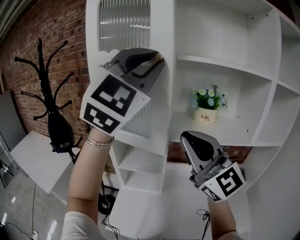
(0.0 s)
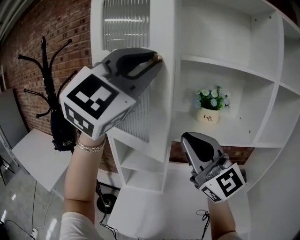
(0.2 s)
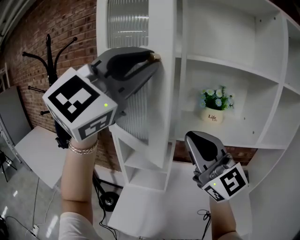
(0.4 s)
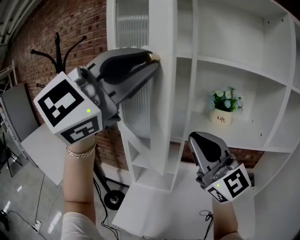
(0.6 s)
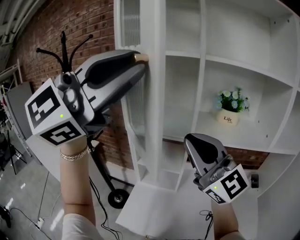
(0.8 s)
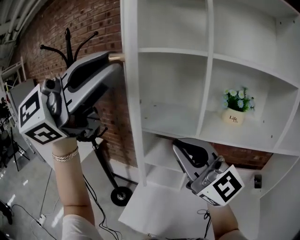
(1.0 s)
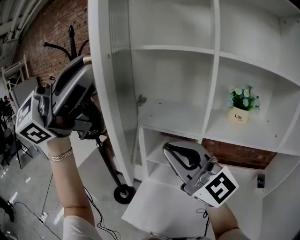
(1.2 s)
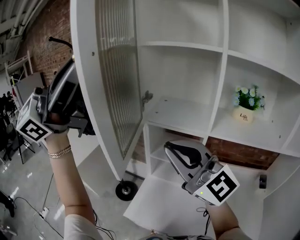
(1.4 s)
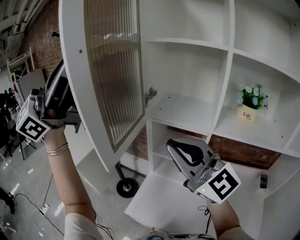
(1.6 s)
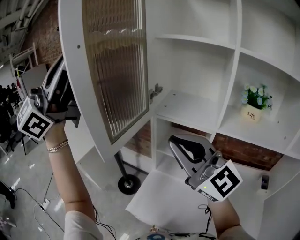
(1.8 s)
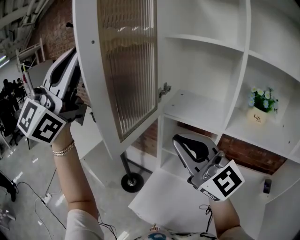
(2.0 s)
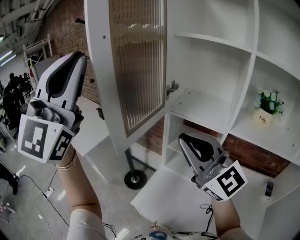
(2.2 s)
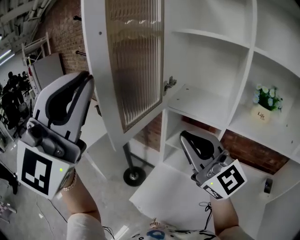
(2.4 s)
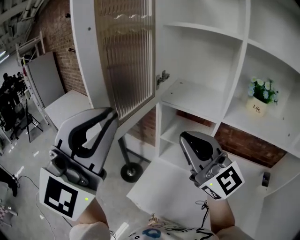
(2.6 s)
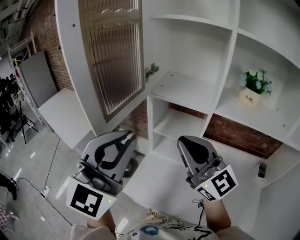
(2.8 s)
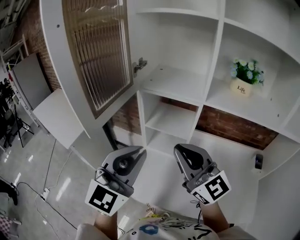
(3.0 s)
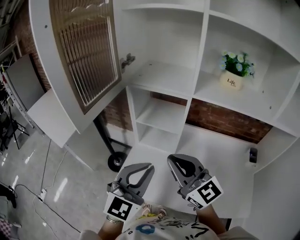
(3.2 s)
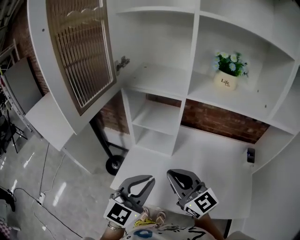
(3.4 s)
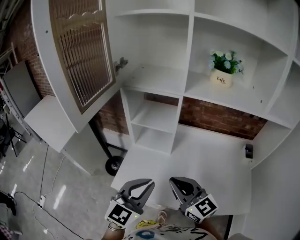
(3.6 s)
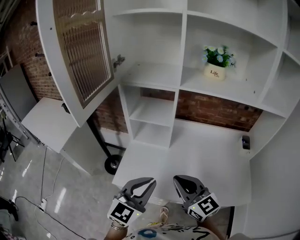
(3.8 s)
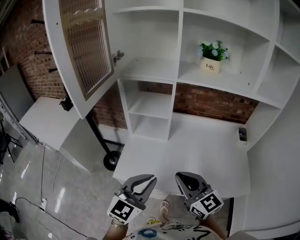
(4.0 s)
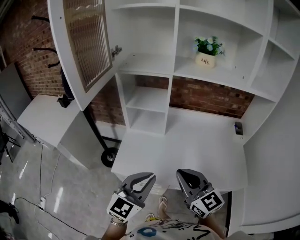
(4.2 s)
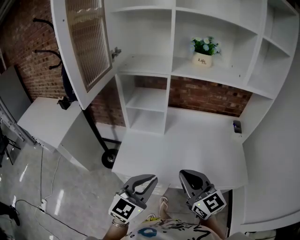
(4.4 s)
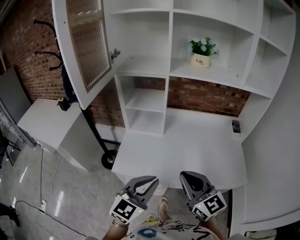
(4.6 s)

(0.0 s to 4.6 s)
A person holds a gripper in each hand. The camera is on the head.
0.0 s - 1.6 s: The right gripper travels to the left by roughly 15 cm, and rotates roughly 20 degrees; the left gripper is displaced to the left and backward by approximately 35 cm, and swivels approximately 40 degrees.
1.6 s - 3.0 s: The right gripper shifts roughly 15 cm downward and to the right. The left gripper goes some 35 cm downward and to the right, and tips its fingers downward by approximately 30 degrees.
3.0 s - 4.6 s: The left gripper goes some 30 cm backward, downward and to the right, and turns by approximately 30 degrees. The right gripper shifts roughly 25 cm backward and downward, and changes its angle by approximately 30 degrees.

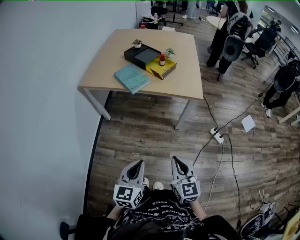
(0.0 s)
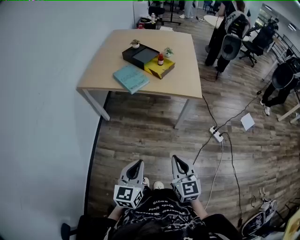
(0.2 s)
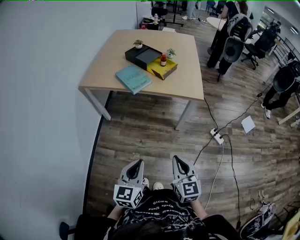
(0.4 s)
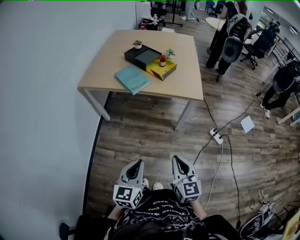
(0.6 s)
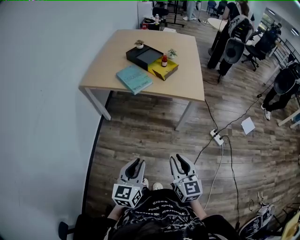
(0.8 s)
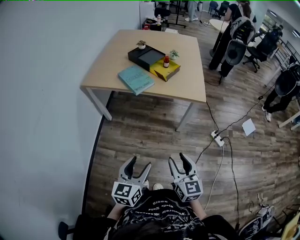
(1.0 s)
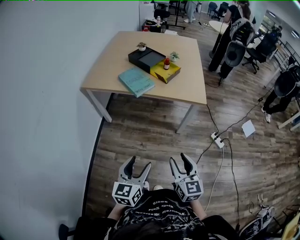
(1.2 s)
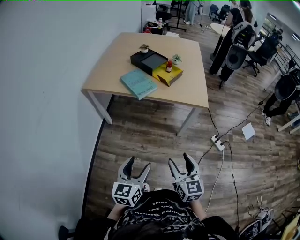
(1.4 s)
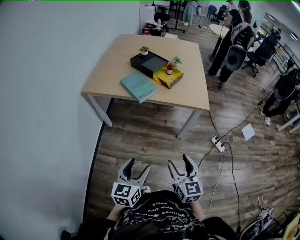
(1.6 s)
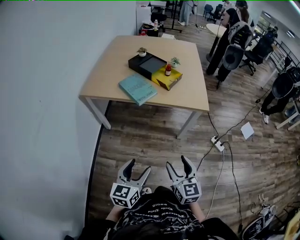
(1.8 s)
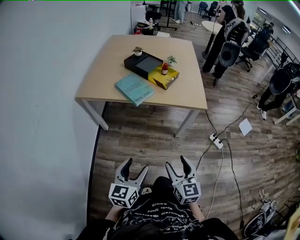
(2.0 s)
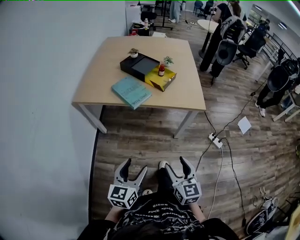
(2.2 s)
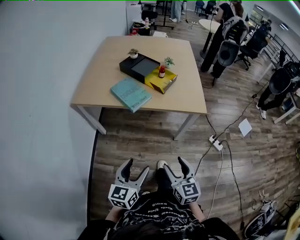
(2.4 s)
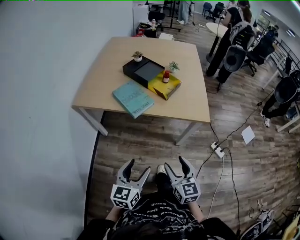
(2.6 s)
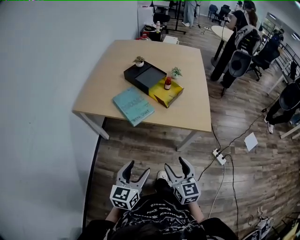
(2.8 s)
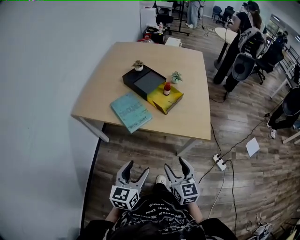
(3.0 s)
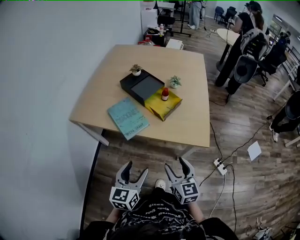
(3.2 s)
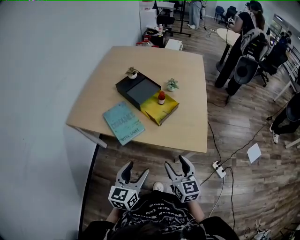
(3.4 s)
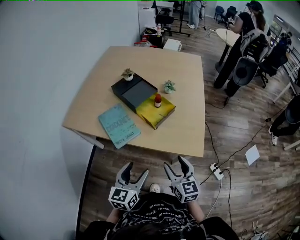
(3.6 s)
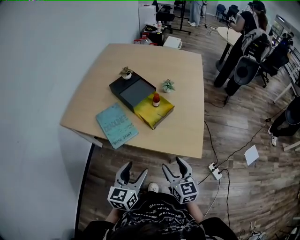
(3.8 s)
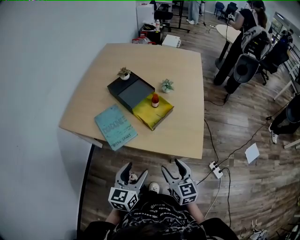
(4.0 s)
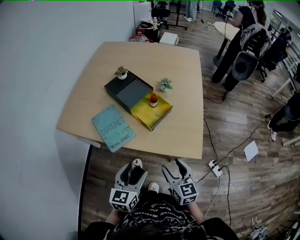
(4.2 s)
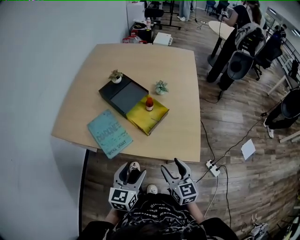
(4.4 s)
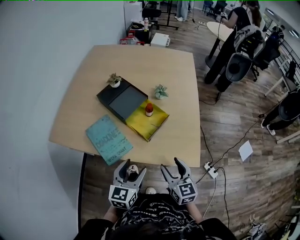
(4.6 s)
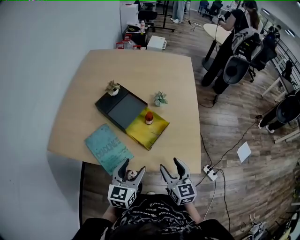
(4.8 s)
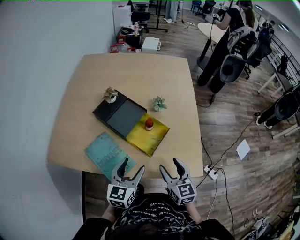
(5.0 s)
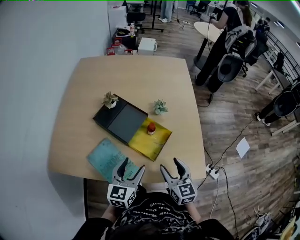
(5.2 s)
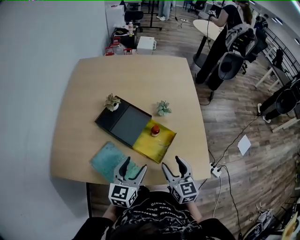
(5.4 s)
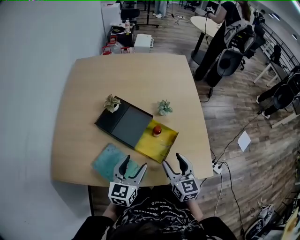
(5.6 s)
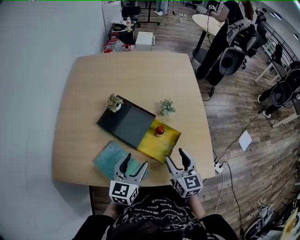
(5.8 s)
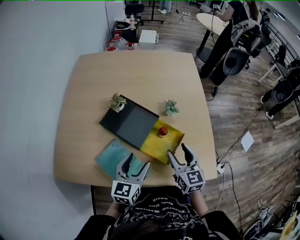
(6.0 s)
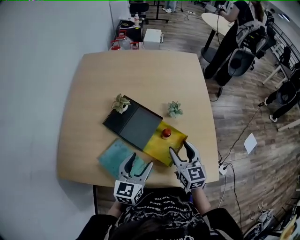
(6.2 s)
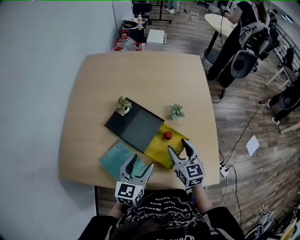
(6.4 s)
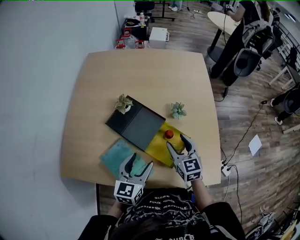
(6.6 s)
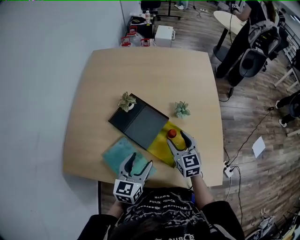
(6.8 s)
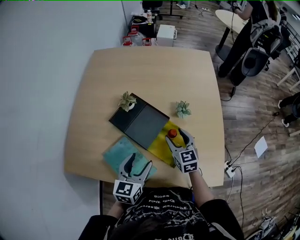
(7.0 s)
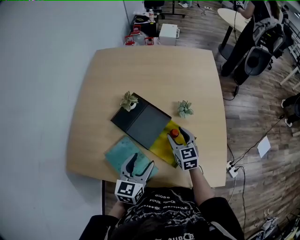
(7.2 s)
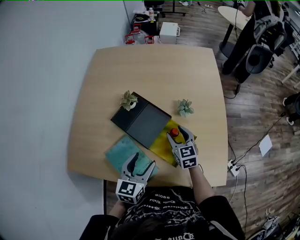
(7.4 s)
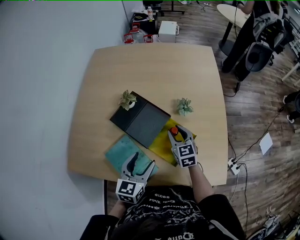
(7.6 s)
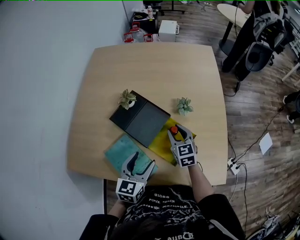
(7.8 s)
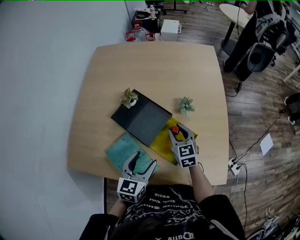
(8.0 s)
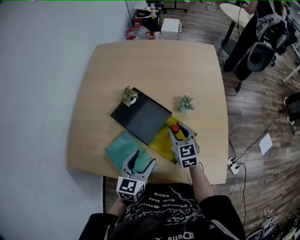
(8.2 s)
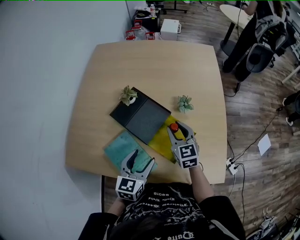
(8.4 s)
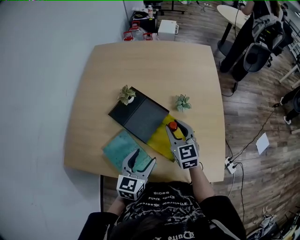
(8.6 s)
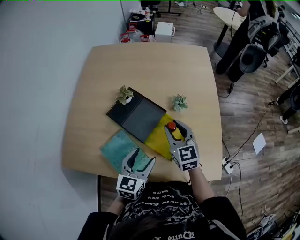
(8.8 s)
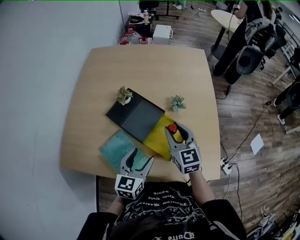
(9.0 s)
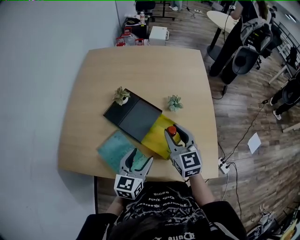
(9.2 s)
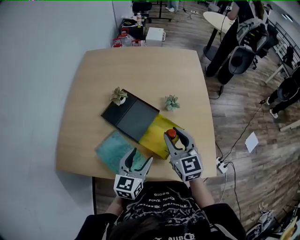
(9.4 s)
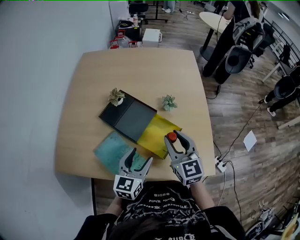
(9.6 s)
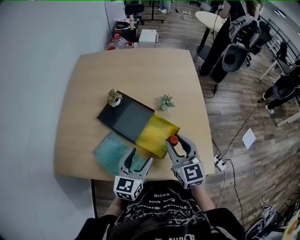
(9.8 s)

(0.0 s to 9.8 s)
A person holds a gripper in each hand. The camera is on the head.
0.0 s - 1.4 s: The left gripper changes place by some 5 cm, and opens. Meanwhile the right gripper opens.
1.4 s - 2.8 s: Both grippers travel together forward, some 20 cm.
2.8 s - 4.2 s: The grippers both shift forward and to the right by approximately 20 cm.
4.2 s - 5.6 s: The left gripper shifts approximately 25 cm forward. The right gripper moves forward and to the left, some 25 cm.
5.6 s - 7.0 s: The right gripper travels forward by about 15 cm.
7.0 s - 8.4 s: The right gripper closes.
8.4 s - 9.8 s: The right gripper moves backward and upward, about 15 cm; the left gripper ends up about 5 cm from where it was.

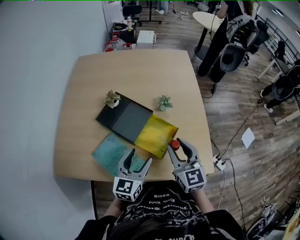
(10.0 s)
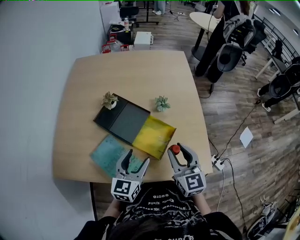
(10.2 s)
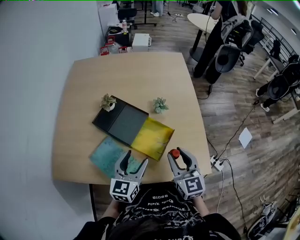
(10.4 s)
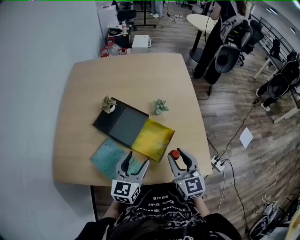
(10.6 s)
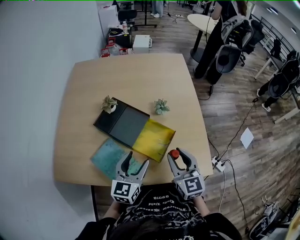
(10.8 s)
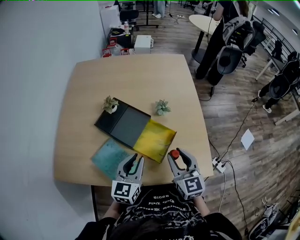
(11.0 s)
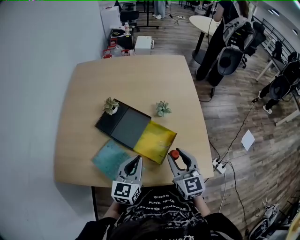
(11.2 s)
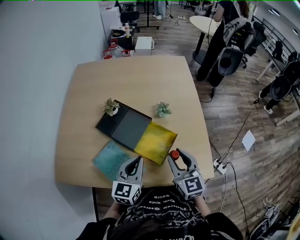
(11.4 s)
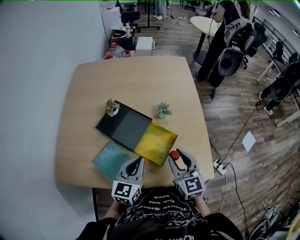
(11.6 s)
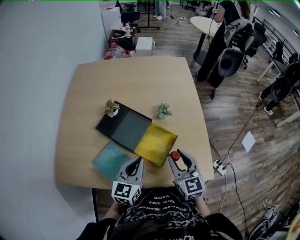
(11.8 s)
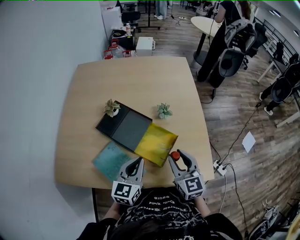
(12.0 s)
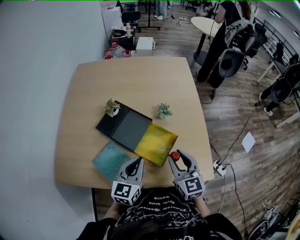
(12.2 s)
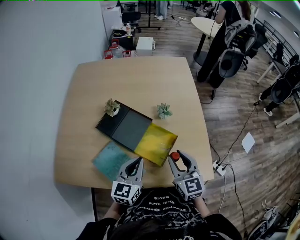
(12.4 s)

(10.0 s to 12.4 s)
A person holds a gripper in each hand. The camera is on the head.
10.0 s - 11.2 s: The left gripper closes.
11.2 s - 12.4 s: The grippers move only a little.

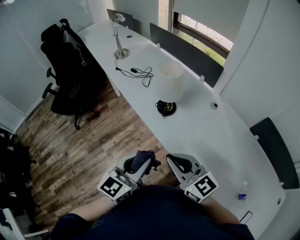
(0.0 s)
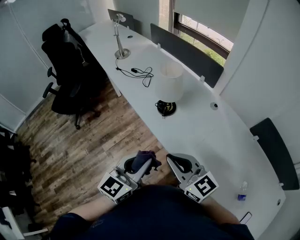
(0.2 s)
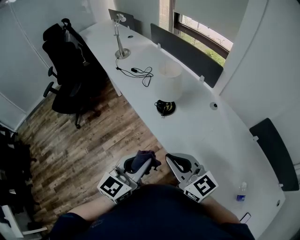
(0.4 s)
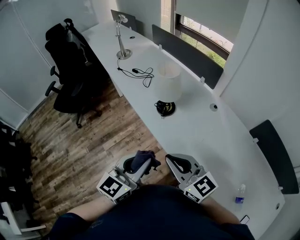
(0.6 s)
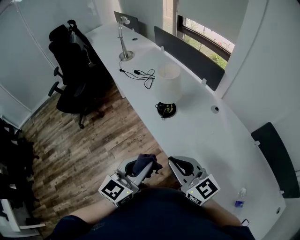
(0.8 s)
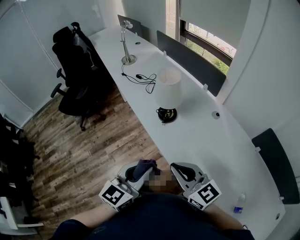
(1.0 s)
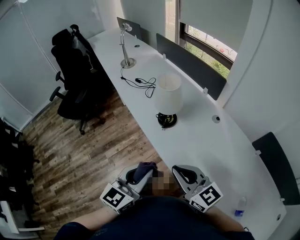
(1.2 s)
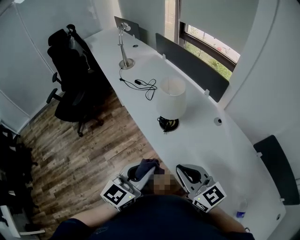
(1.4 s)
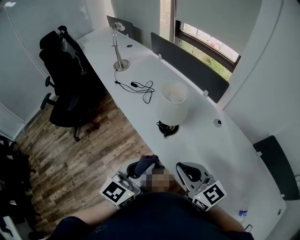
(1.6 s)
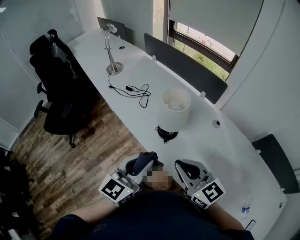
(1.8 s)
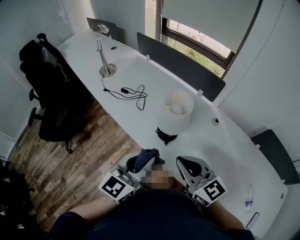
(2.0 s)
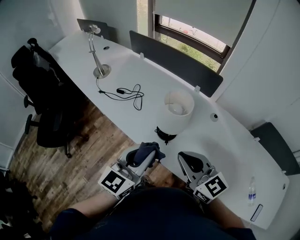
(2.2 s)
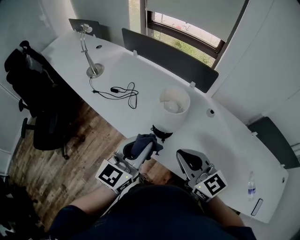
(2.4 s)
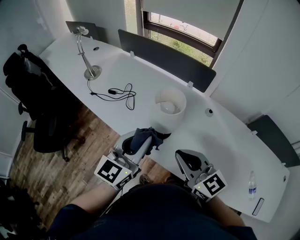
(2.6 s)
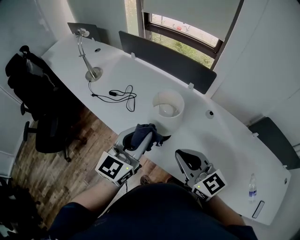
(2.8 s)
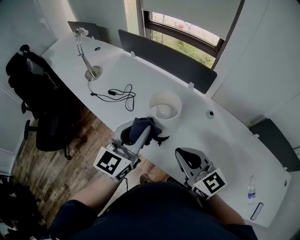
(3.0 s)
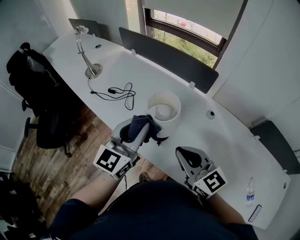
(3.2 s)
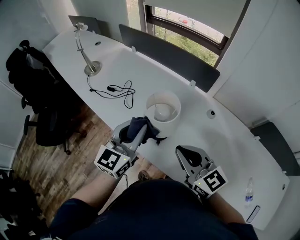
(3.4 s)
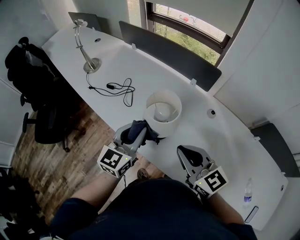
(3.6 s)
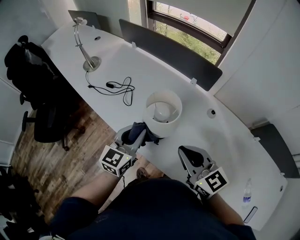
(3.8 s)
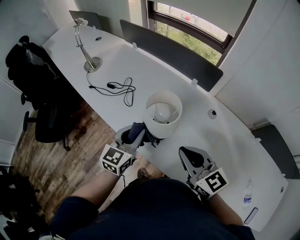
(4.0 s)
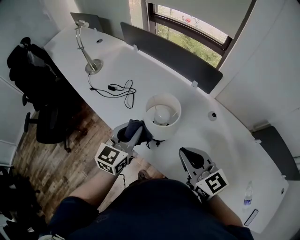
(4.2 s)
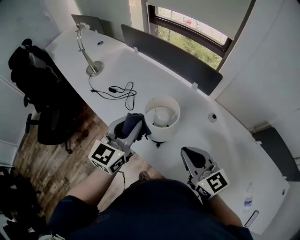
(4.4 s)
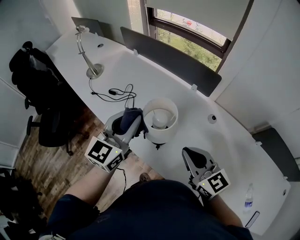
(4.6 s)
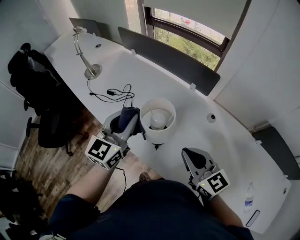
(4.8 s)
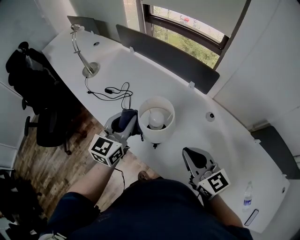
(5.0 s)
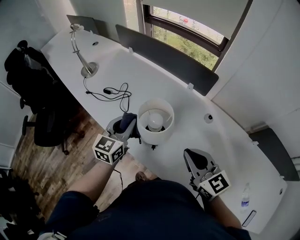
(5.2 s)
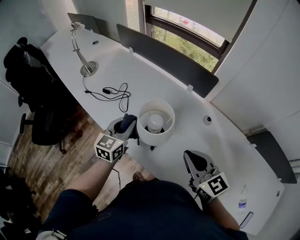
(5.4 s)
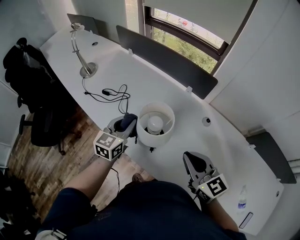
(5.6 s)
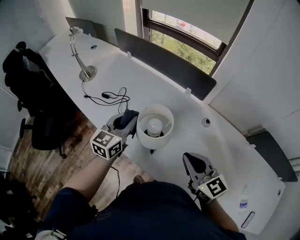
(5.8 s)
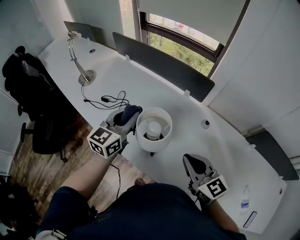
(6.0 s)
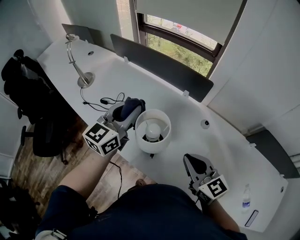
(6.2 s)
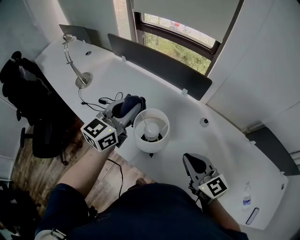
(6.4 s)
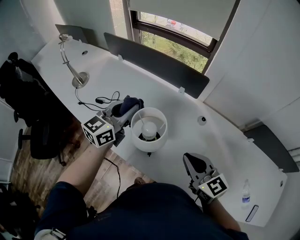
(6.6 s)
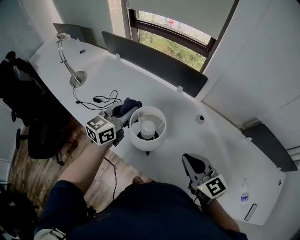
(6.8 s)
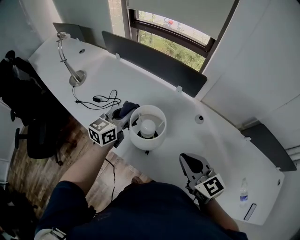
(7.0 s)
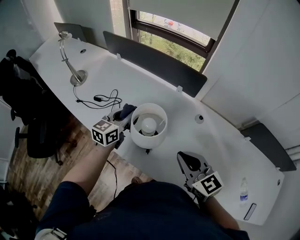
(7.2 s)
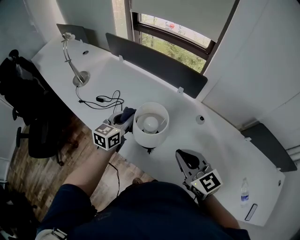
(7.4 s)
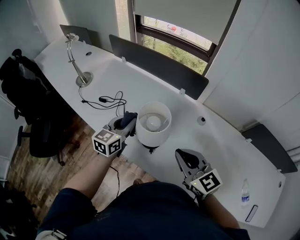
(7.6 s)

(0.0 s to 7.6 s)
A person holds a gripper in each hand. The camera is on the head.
0.0 s - 1.6 s: Both grippers travel together forward, roughly 10 cm.
1.6 s - 3.0 s: The right gripper goes roughly 10 cm forward. Meanwhile the left gripper goes about 20 cm forward.
3.0 s - 4.6 s: The left gripper goes roughly 5 cm forward, and reaches approximately 15 cm downward, then returns; the right gripper shifts approximately 5 cm to the right.
4.6 s - 6.0 s: The left gripper goes approximately 5 cm forward, and moves approximately 15 cm downward and comes back.
6.0 s - 7.6 s: The left gripper moves downward, about 5 cm.
